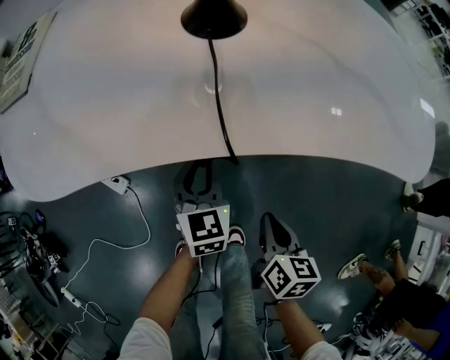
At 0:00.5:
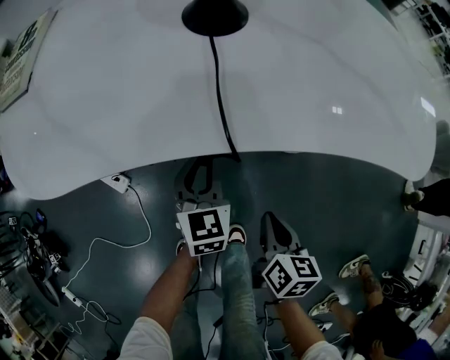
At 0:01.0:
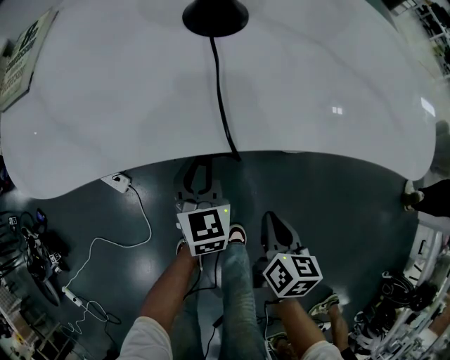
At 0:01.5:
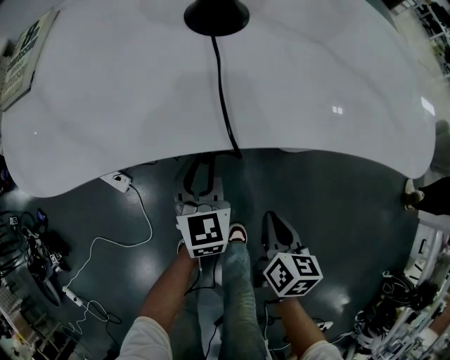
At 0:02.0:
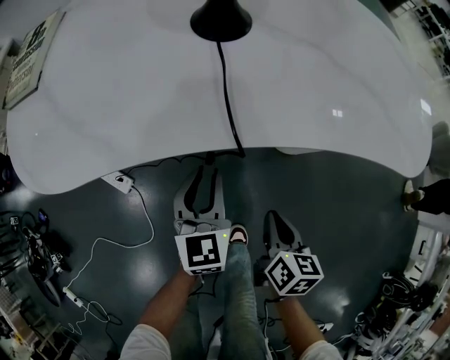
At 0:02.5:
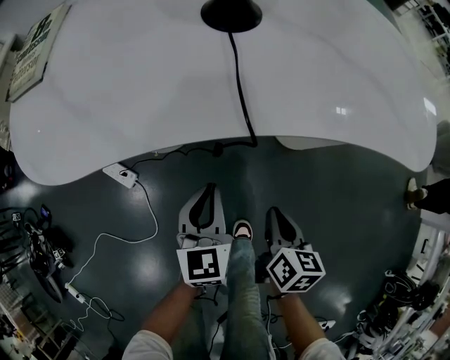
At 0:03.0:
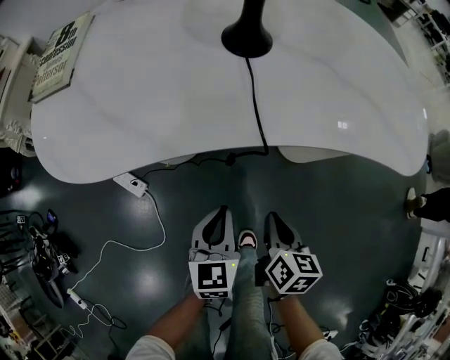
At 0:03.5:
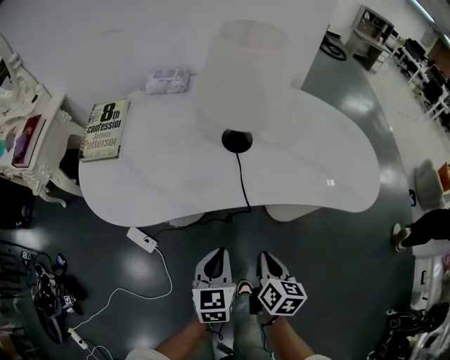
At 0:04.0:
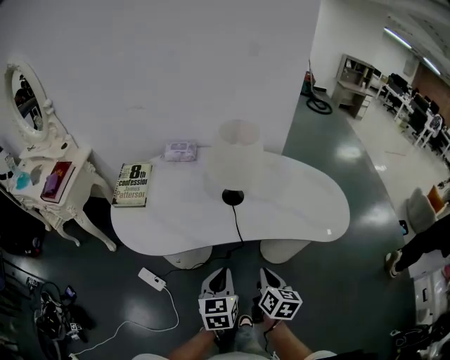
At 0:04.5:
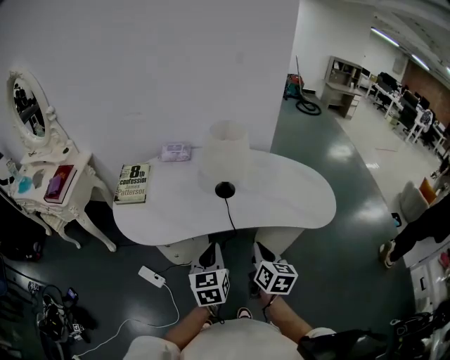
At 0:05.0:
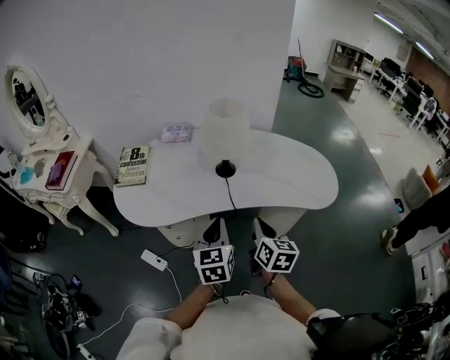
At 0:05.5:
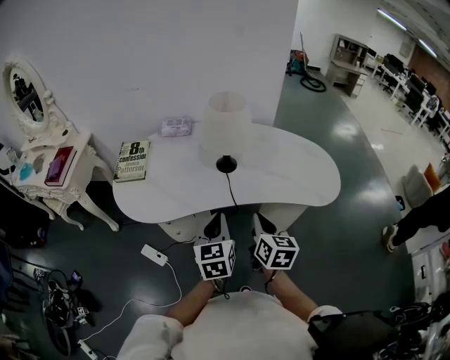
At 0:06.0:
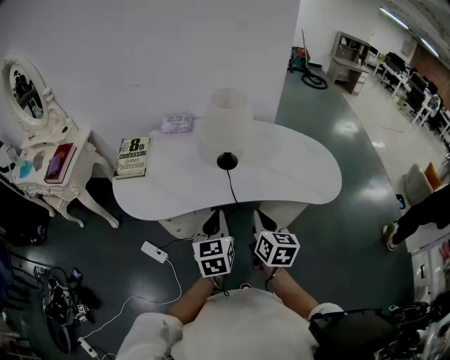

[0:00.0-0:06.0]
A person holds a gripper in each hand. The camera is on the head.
0:00.0 to 0:02.0: The left gripper shifts by approximately 5 cm.
0:02.0 to 0:04.0: The left gripper is displaced upward and backward by about 30 cm. The right gripper heads upward, covering about 30 cm.
0:04.0 to 0:06.0: Both grippers travel together upward, roughly 10 cm.

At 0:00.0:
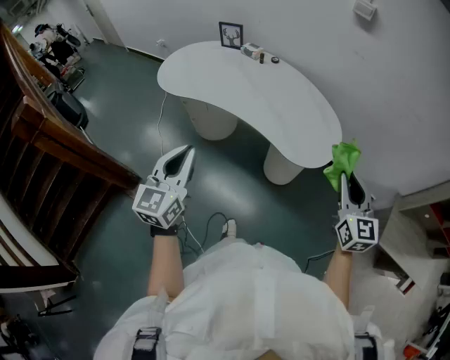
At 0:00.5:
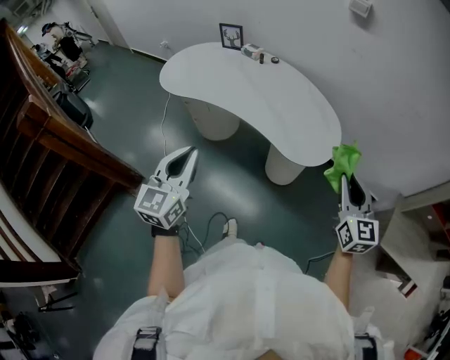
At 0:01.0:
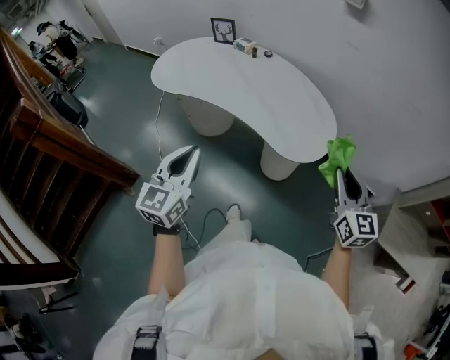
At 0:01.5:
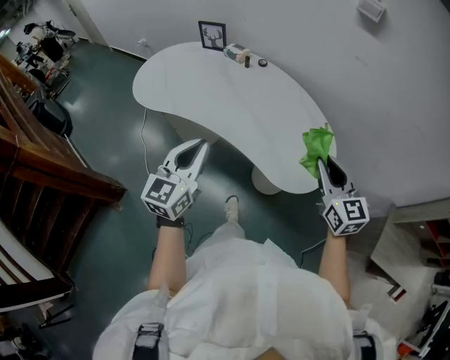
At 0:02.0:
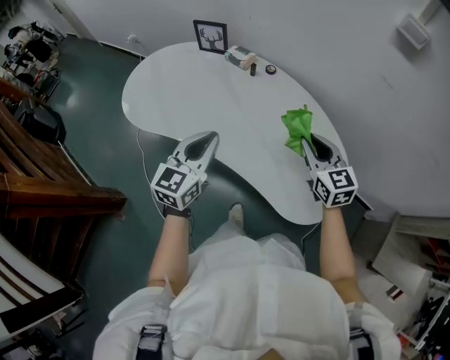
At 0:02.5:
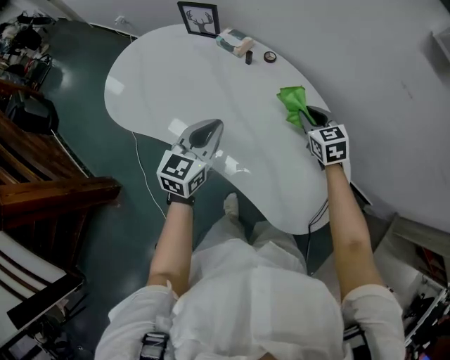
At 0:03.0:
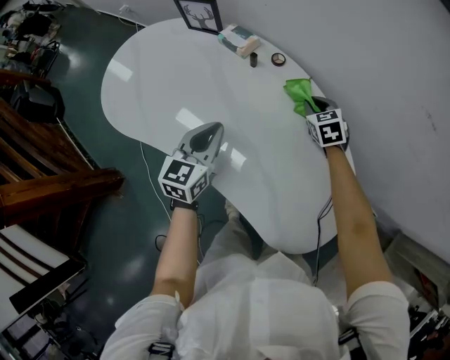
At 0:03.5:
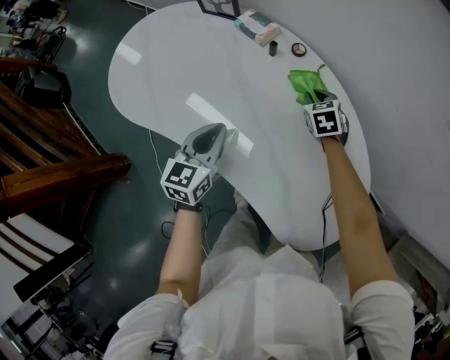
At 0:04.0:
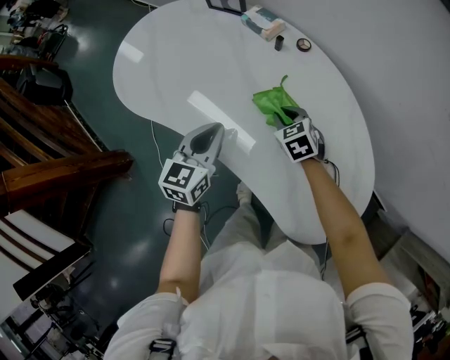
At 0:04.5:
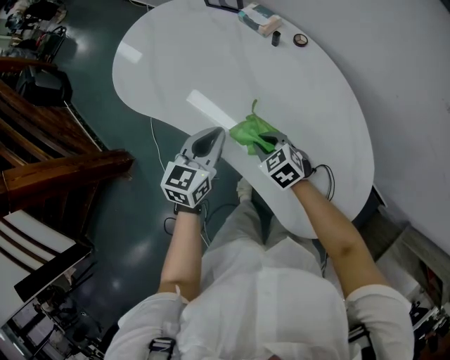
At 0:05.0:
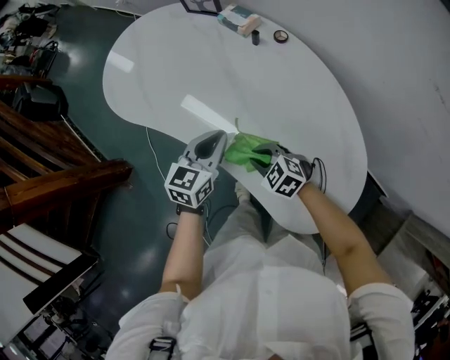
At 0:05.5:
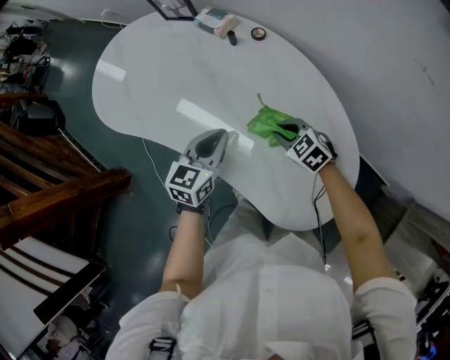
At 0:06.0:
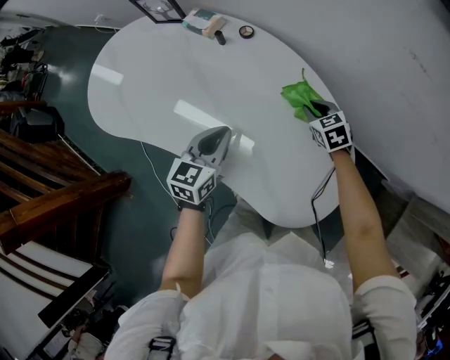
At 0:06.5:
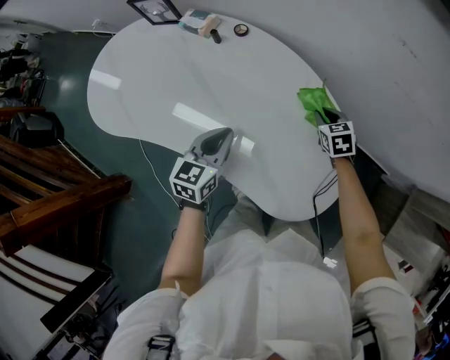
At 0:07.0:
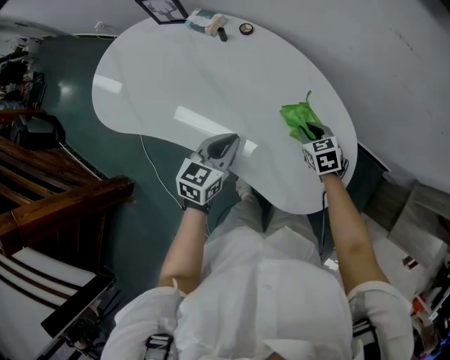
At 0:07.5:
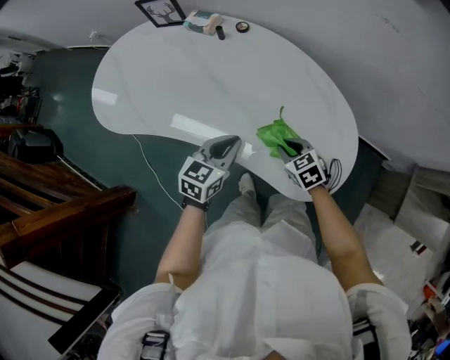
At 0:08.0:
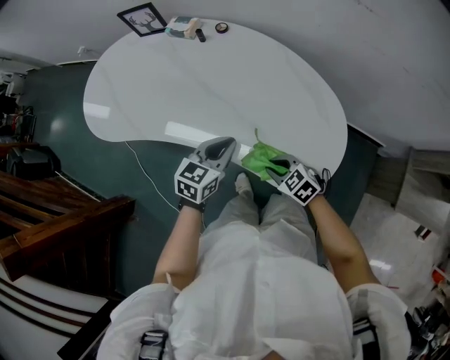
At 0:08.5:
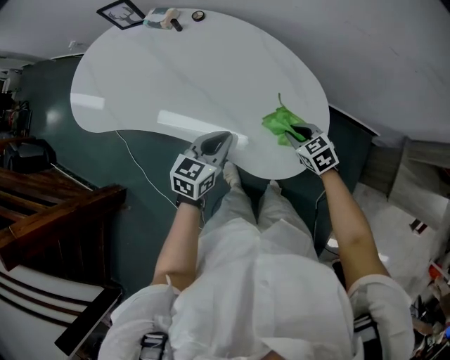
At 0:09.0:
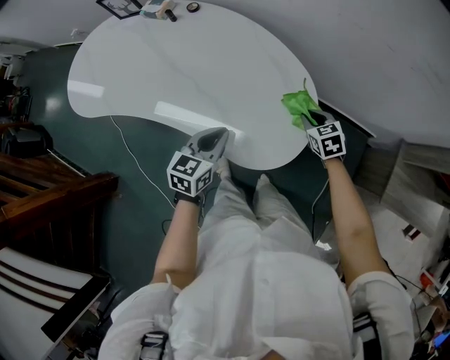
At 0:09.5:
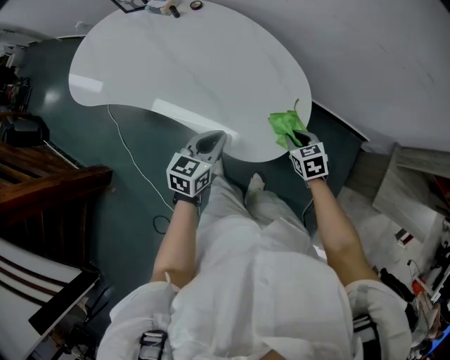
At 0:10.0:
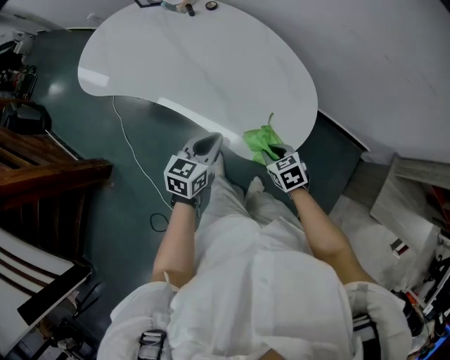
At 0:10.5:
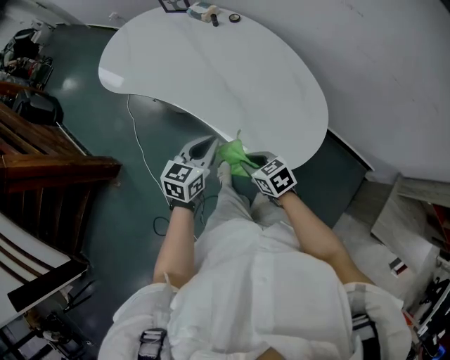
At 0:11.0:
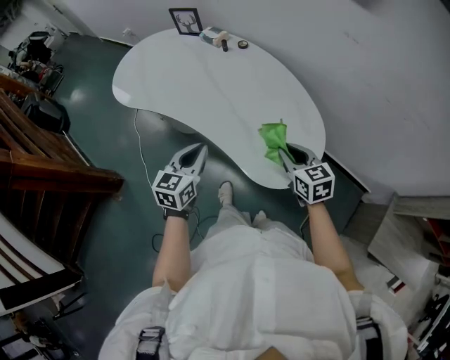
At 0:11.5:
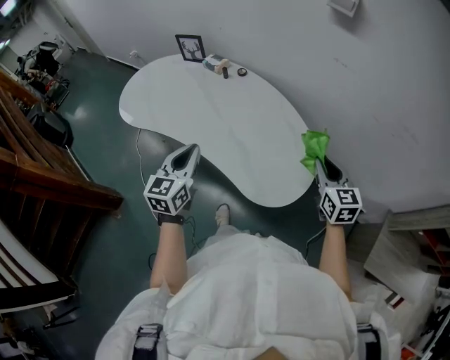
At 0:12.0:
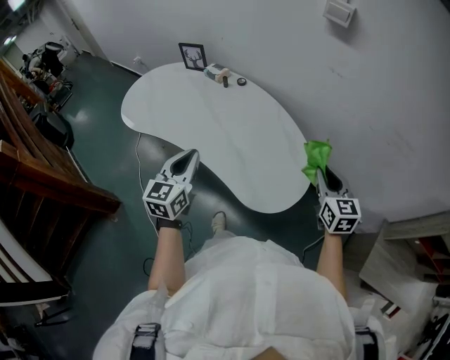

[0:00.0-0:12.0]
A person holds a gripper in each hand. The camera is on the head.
0:00.0 to 0:02.0: The grippers both shift forward by approximately 35 cm. The right gripper swivels about 20 degrees.
0:02.0 to 0:04.0: The left gripper heads downward and forward, covering about 15 cm; the right gripper shifts some 30 cm downward, forward and to the left, and tips its fingers downward by about 30 degrees.
0:04.0 to 0:06.0: The left gripper changes place by about 15 cm. Meanwhile the right gripper shifts by approximately 25 cm.
0:06.0 to 0:08.0: The right gripper is displaced backward by roughly 30 cm; the left gripper moves backward, roughly 15 cm.
0:08.0 to 0:10.0: The left gripper goes roughly 15 cm backward and to the right; the right gripper heads to the right, covering roughly 15 cm.
0:10.0 to 0:12.0: The right gripper travels upward and to the right by approximately 30 cm, and tilts its fingers approximately 40 degrees upward. The left gripper goes some 20 cm upward and to the left, and swivels about 30 degrees.

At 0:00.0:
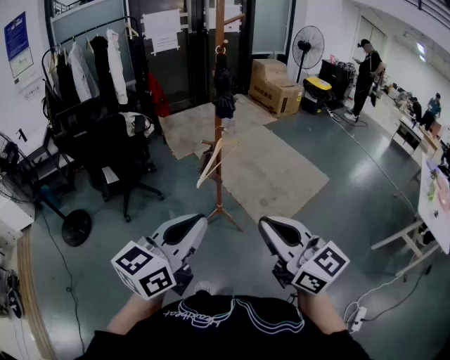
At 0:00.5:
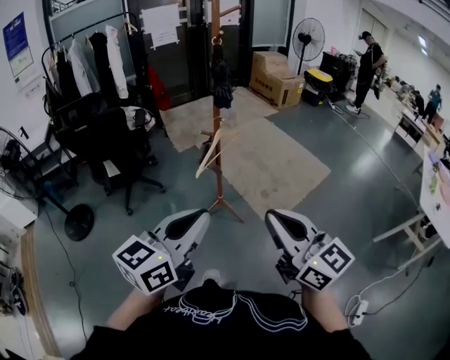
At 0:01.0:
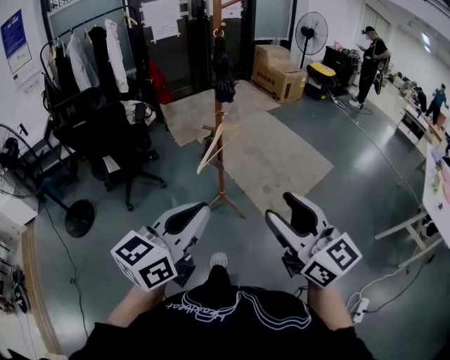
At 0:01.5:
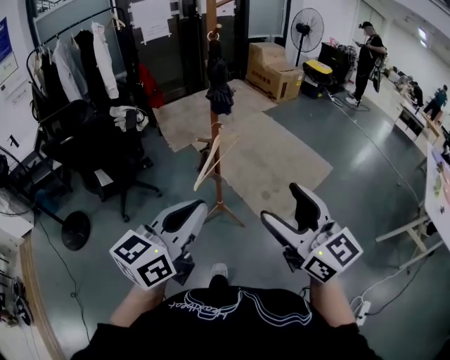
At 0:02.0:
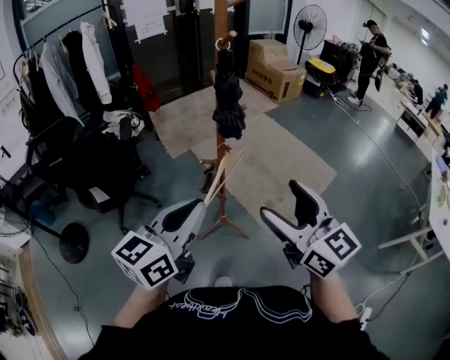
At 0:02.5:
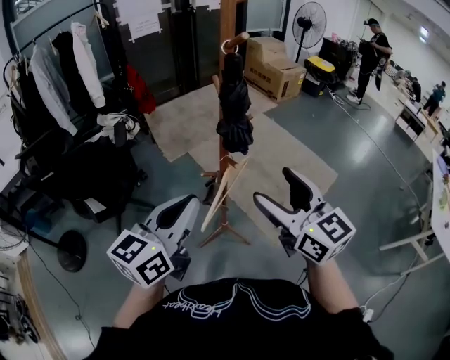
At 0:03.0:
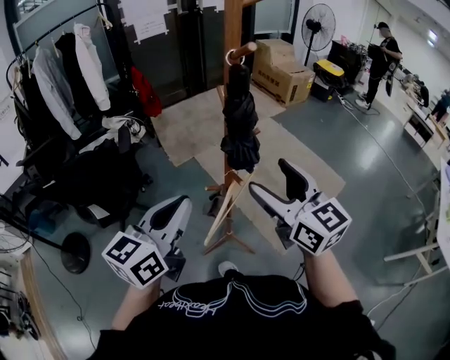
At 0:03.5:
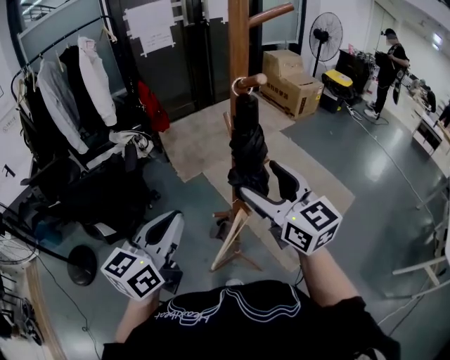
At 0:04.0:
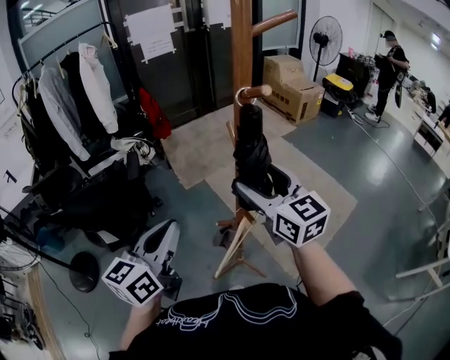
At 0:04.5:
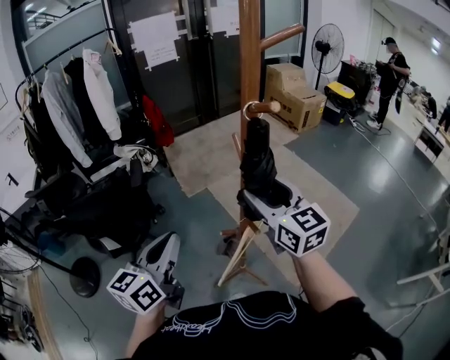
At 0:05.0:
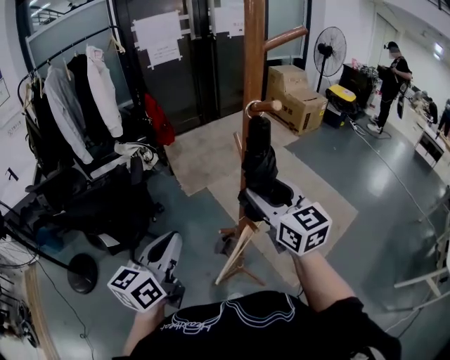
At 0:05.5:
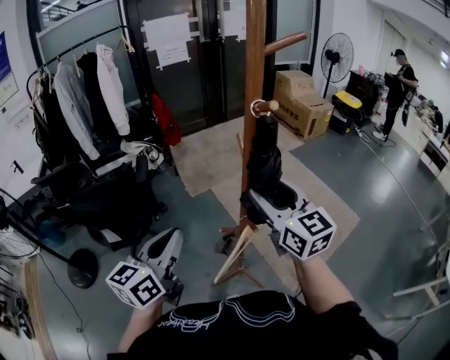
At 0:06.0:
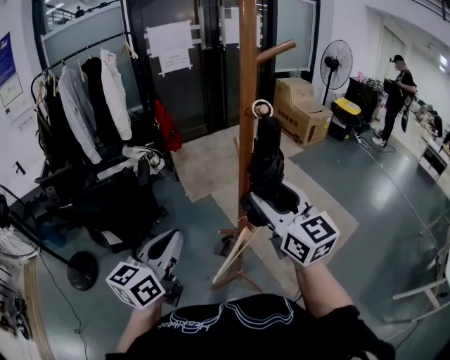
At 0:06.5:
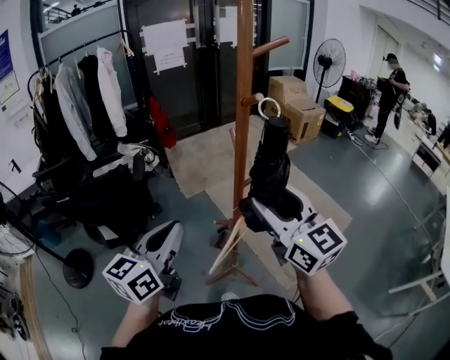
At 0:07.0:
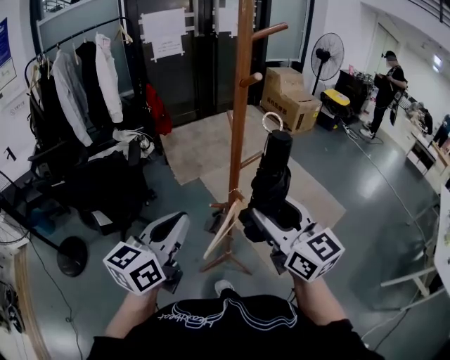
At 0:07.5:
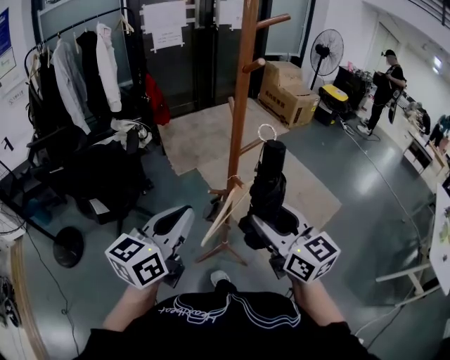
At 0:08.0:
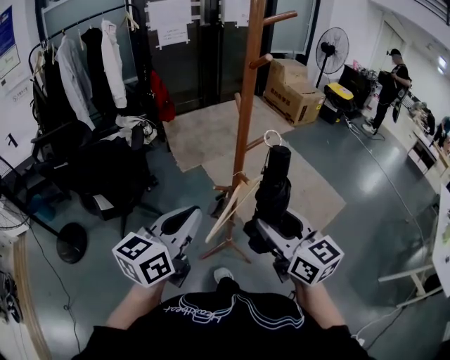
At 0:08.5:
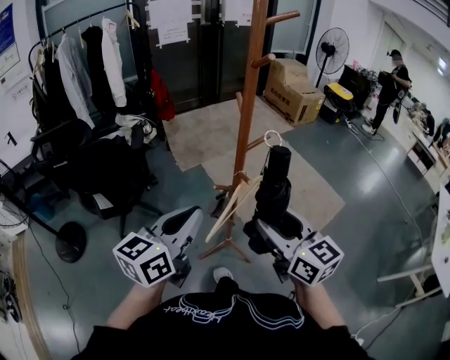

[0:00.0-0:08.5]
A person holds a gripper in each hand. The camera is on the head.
0:00.0 to 0:02.0: The grippers both shift forward by some 25 cm. The right gripper opens its fingers.
0:02.0 to 0:04.0: The right gripper heads forward, covering about 30 cm. Meanwhile the left gripper moves forward and to the left, approximately 20 cm.
0:04.0 to 0:06.5: The right gripper is displaced backward and upward by approximately 10 cm; the left gripper is displaced backward by roughly 5 cm.
0:06.5 to 0:08.5: The left gripper heads backward, covering about 5 cm; the right gripper goes some 15 cm downward and backward.
